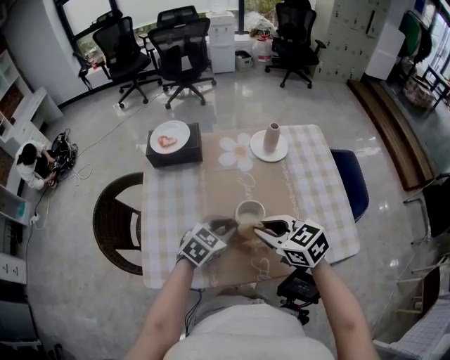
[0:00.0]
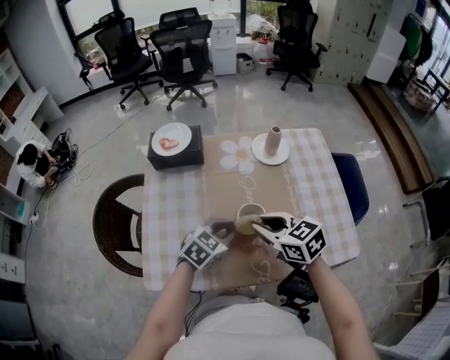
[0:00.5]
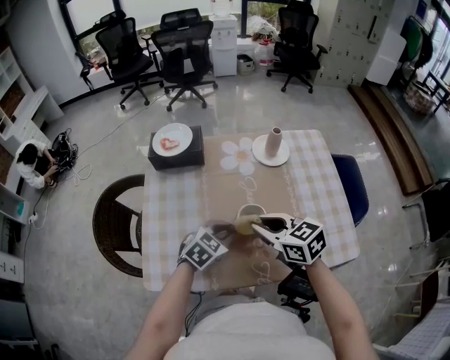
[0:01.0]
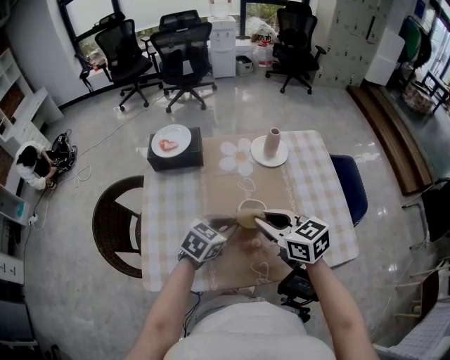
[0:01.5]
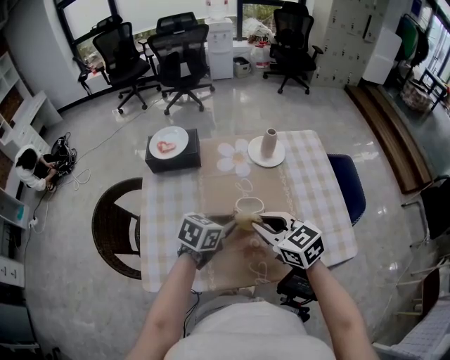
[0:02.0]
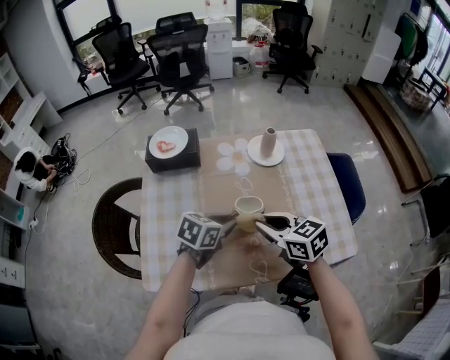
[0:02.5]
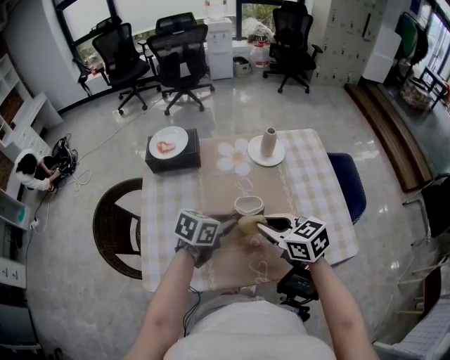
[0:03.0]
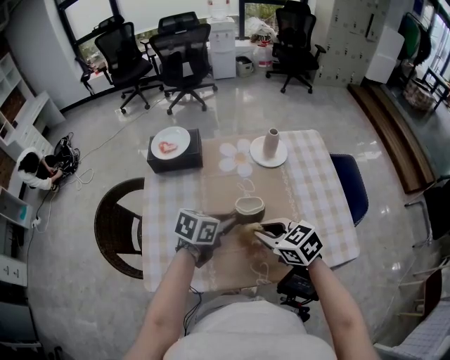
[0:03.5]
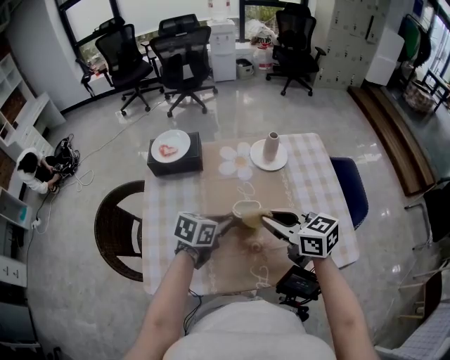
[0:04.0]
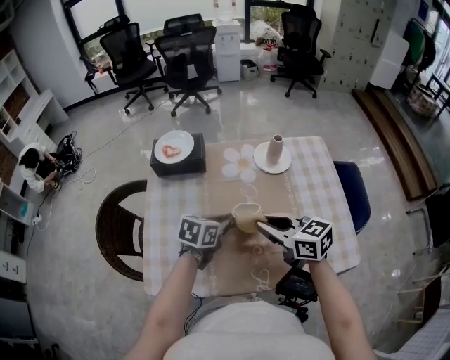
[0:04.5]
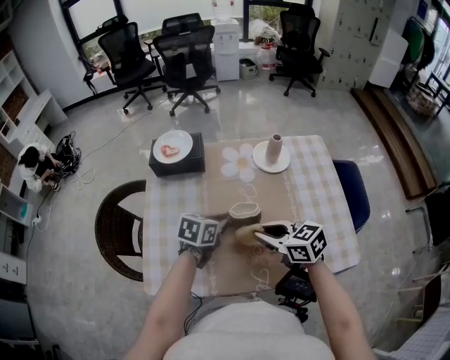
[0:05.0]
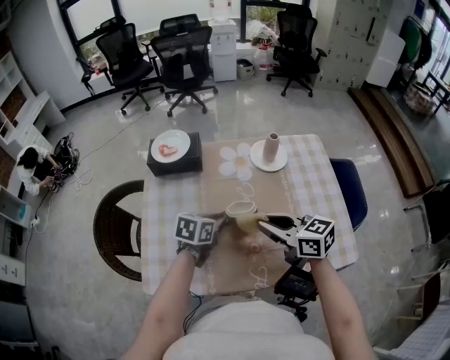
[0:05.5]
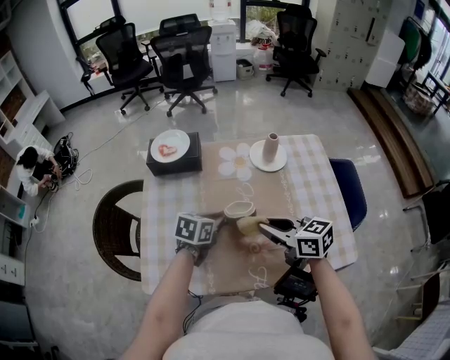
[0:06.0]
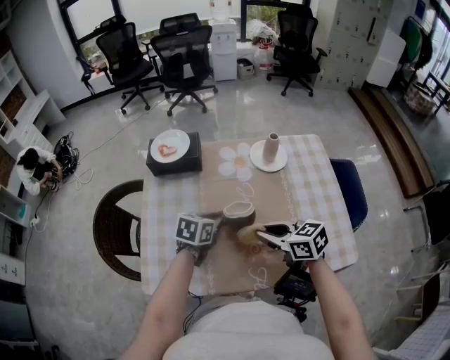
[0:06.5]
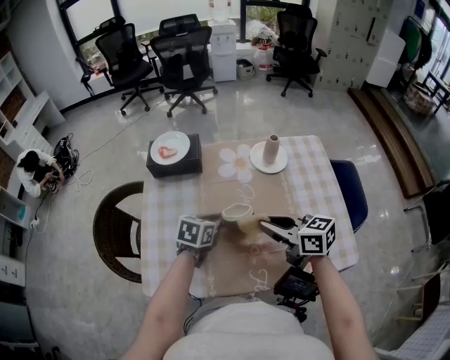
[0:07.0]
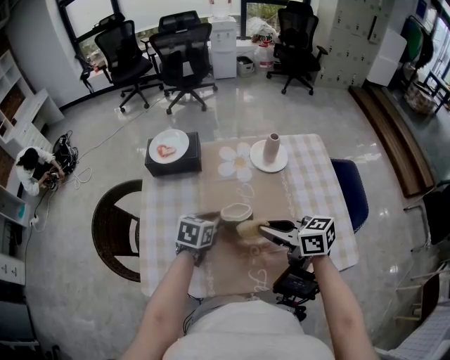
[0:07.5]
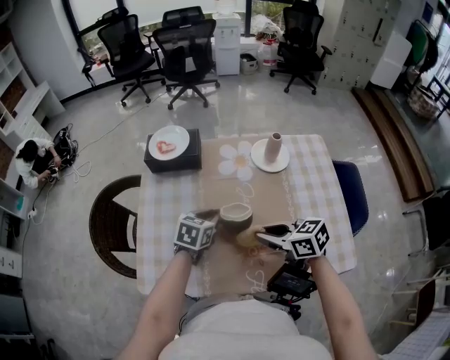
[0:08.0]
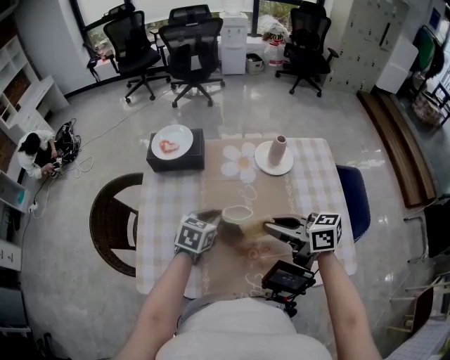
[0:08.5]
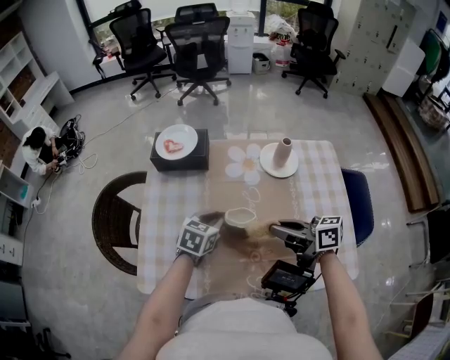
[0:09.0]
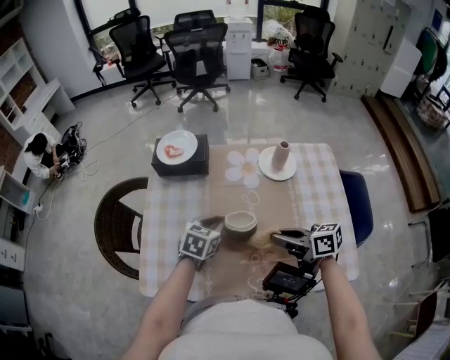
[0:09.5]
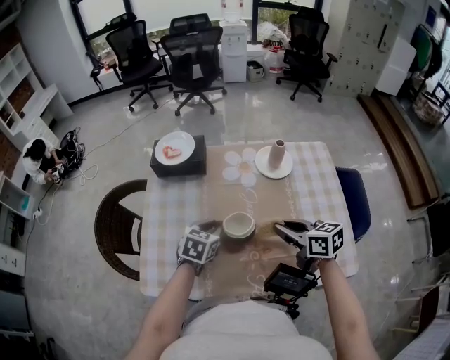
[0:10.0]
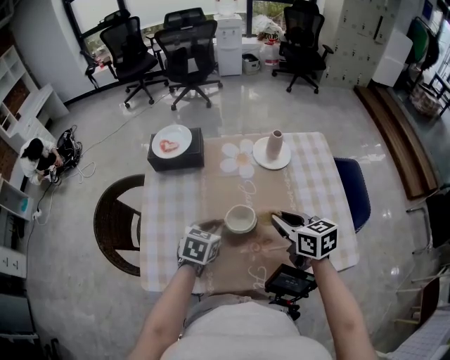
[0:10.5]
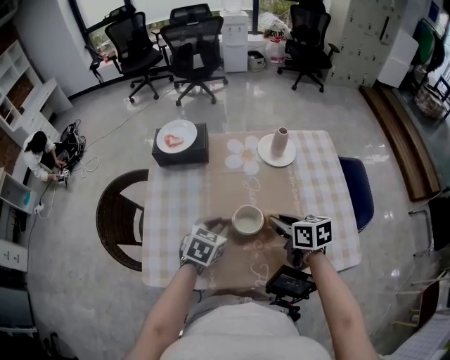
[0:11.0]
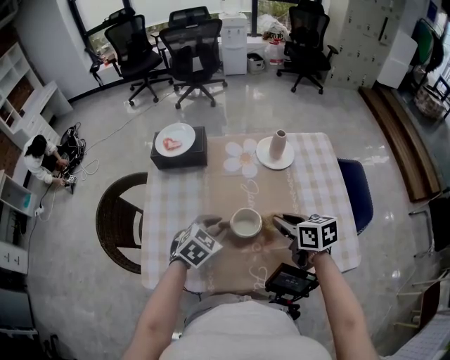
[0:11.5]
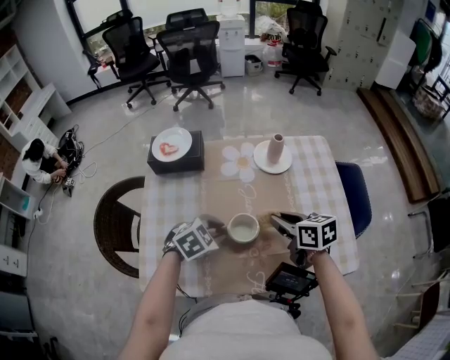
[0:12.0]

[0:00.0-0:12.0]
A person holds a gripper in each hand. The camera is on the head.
0:00.0 to 0:02.0: The left gripper changes its angle by about 20 degrees.
0:02.0 to 0:04.0: The grippers move only a little.
0:06.0 to 0:08.0: The grippers make only small movements.
0:08.0 to 0:10.0: The right gripper heads to the right, covering about 5 cm.
0:10.0 to 0:12.0: The left gripper moves approximately 5 cm, and swivels about 40 degrees.

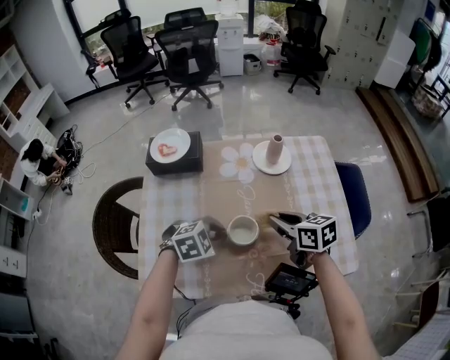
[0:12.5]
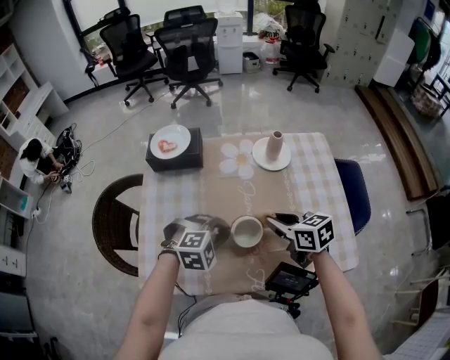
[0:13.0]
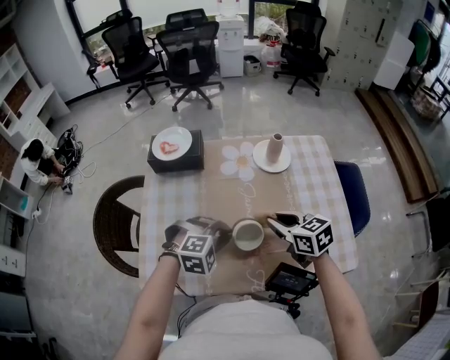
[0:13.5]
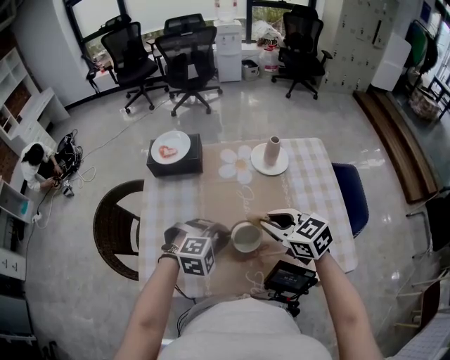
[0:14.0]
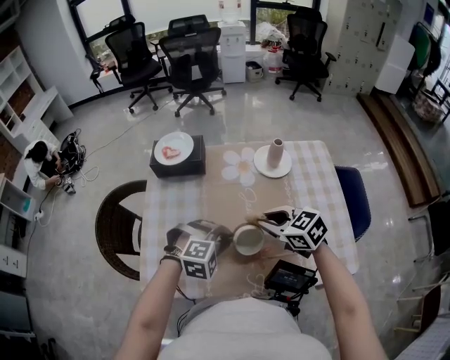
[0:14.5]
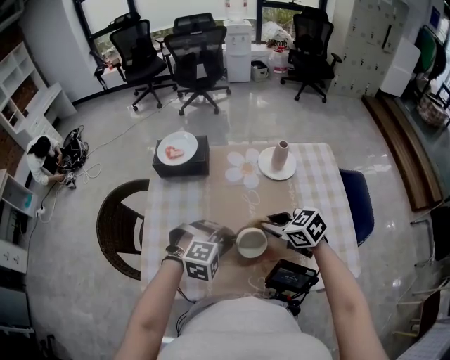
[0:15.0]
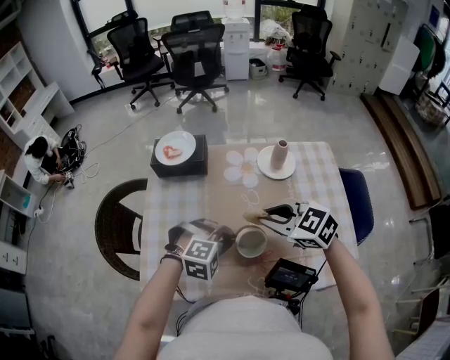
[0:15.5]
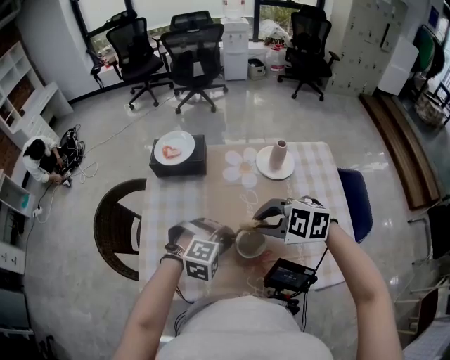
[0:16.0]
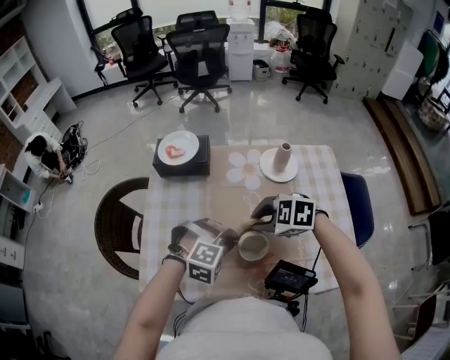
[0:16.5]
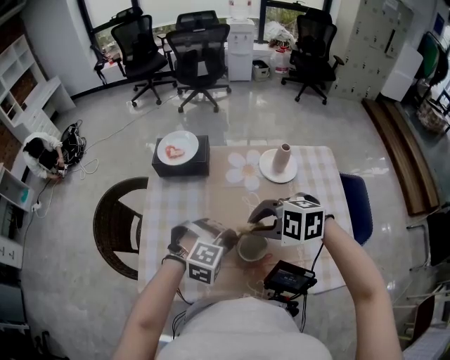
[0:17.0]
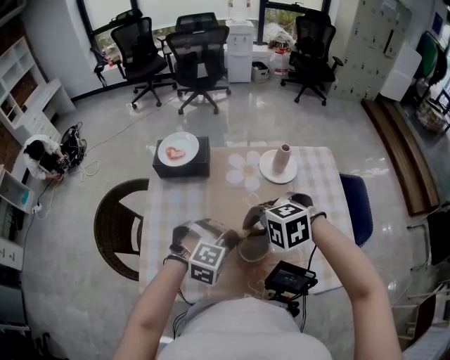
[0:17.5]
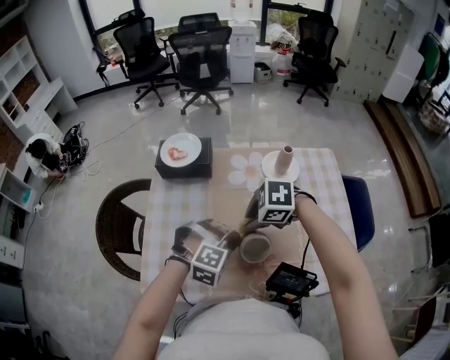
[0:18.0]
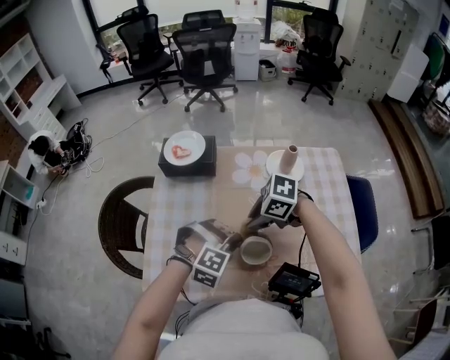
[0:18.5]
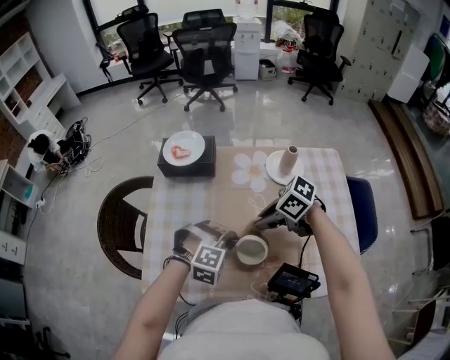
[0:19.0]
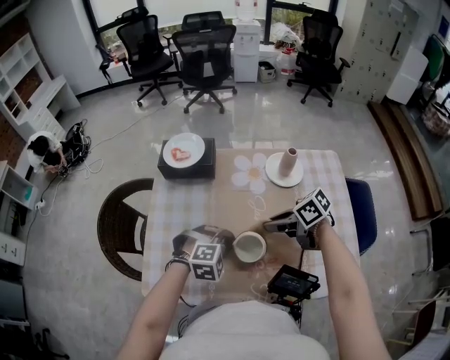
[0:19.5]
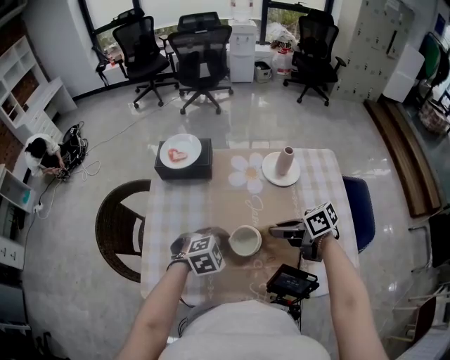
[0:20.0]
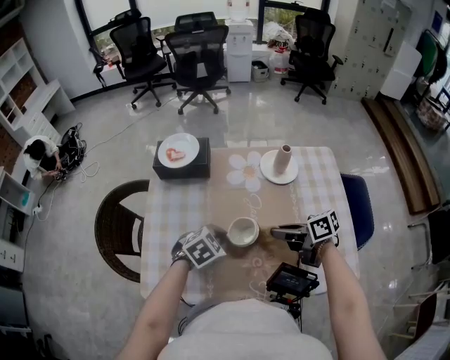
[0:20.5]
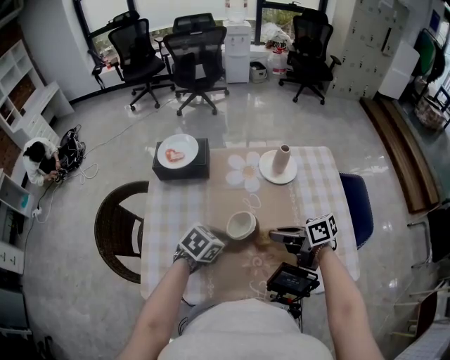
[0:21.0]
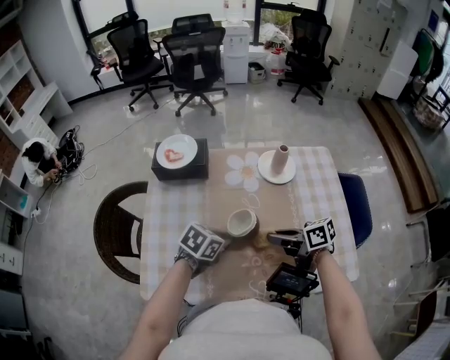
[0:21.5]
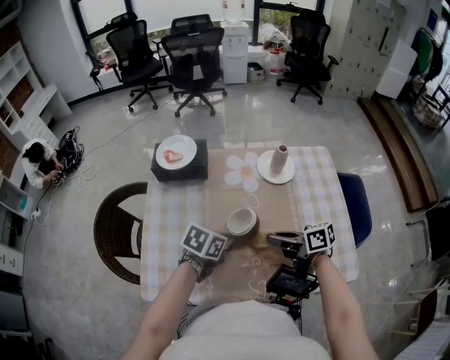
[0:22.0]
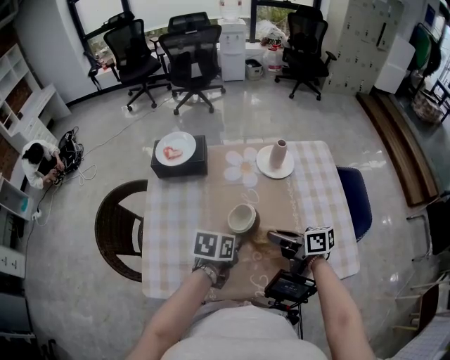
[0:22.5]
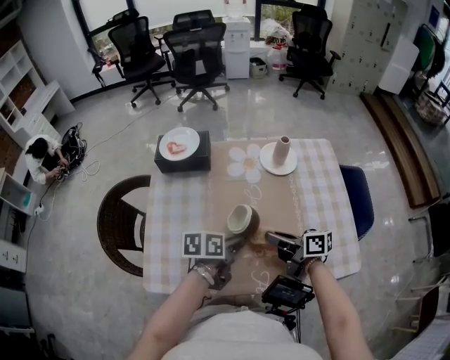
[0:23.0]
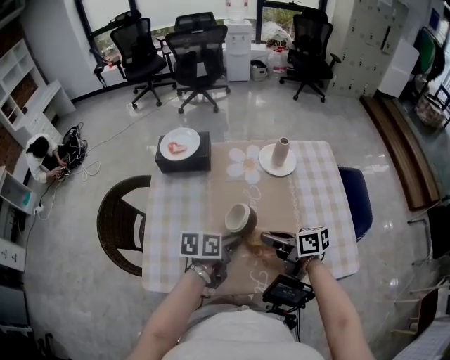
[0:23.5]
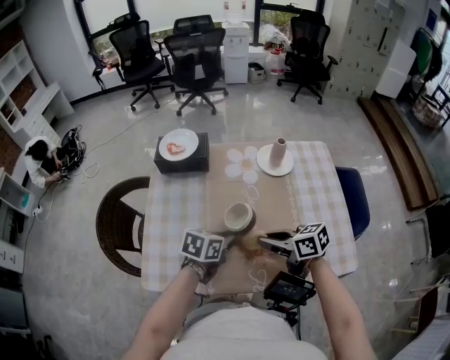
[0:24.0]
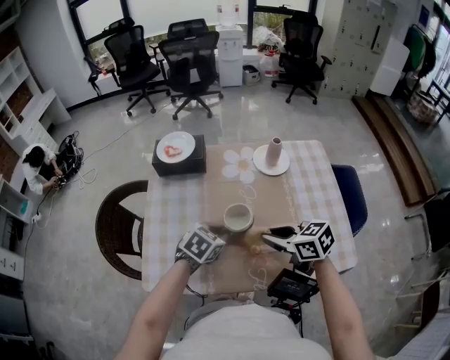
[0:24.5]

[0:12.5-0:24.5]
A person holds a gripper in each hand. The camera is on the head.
0:12.5 to 0:14.5: The left gripper changes its angle by roughly 30 degrees. The right gripper swivels approximately 30 degrees.
0:14.5 to 0:16.5: The right gripper moves some 5 cm upward and comes back, and swivels some 40 degrees.
0:16.5 to 0:18.5: The right gripper rotates some 30 degrees.
0:18.5 to 0:20.5: The left gripper twists about 60 degrees counterclockwise, seen from behind, while the right gripper ends up about 10 cm from where it was, and tilts its fingers about 30 degrees upward.
0:20.5 to 0:22.5: The left gripper rolls counterclockwise, seen from behind, by roughly 50 degrees.
0:22.5 to 0:24.5: The right gripper heads upward, covering about 5 cm, and swivels approximately 30 degrees. Meanwhile the left gripper swivels about 40 degrees.

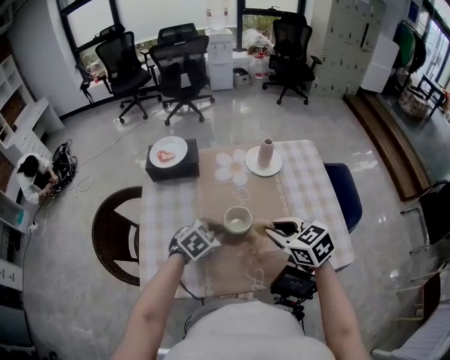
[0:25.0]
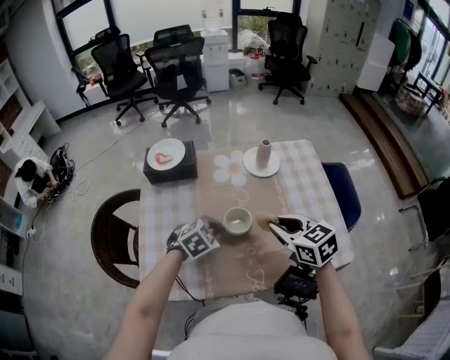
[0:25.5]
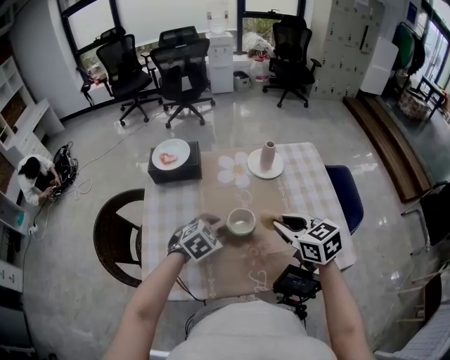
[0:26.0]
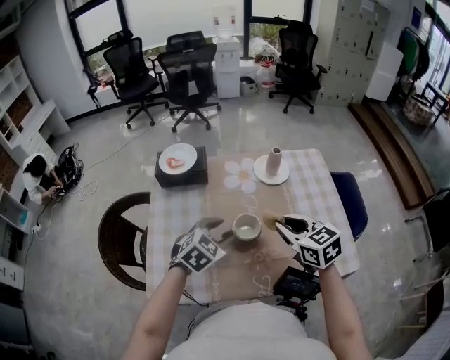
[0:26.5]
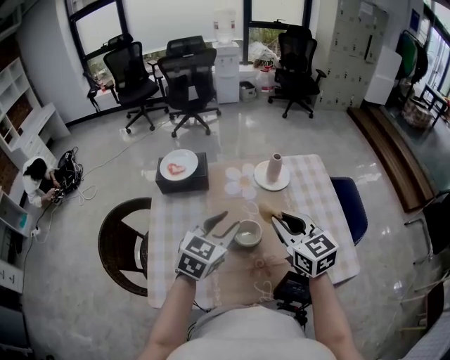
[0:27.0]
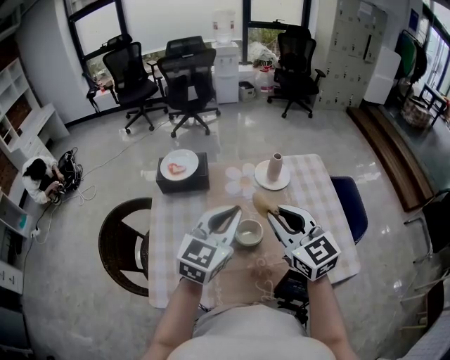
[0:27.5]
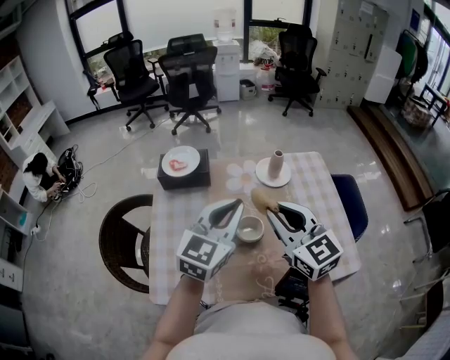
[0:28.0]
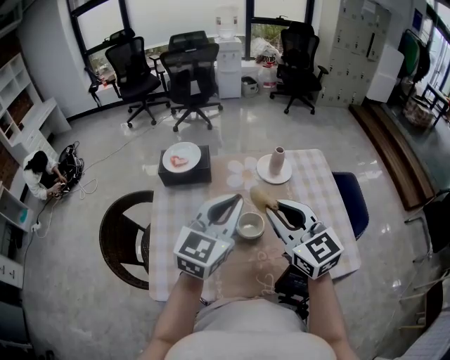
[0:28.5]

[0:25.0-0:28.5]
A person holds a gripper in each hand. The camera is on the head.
0:25.0 to 0:27.0: The left gripper heads upward, covering approximately 15 cm, swivels roughly 30 degrees, and opens up. The right gripper moves upward, about 5 cm, and swivels some 30 degrees.
0:27.0 to 0:28.5: Both grippers travel together upward, about 10 cm. The left gripper closes up.
